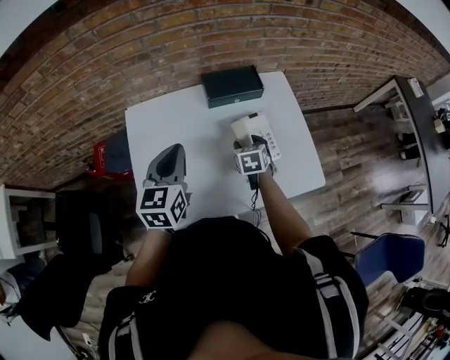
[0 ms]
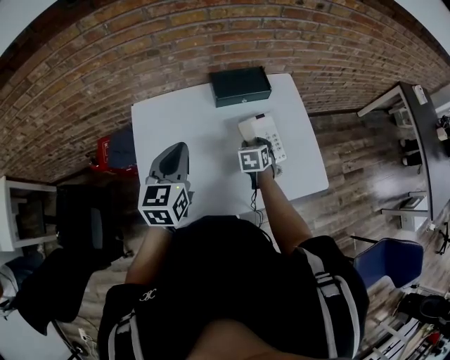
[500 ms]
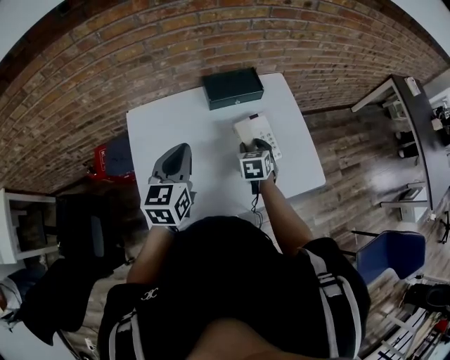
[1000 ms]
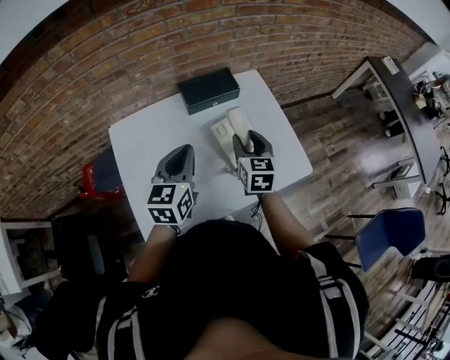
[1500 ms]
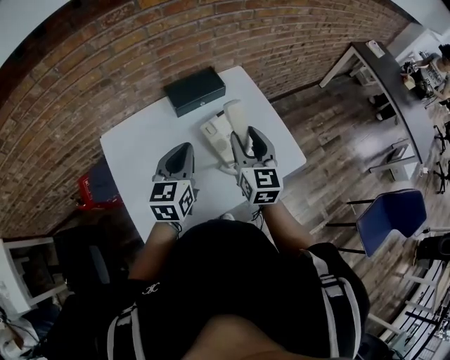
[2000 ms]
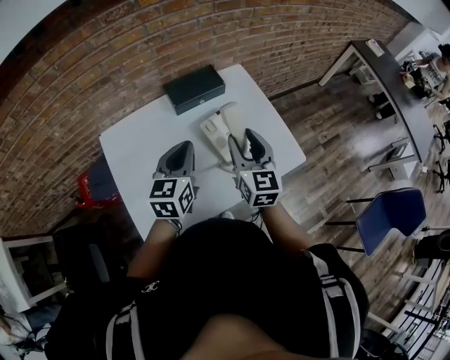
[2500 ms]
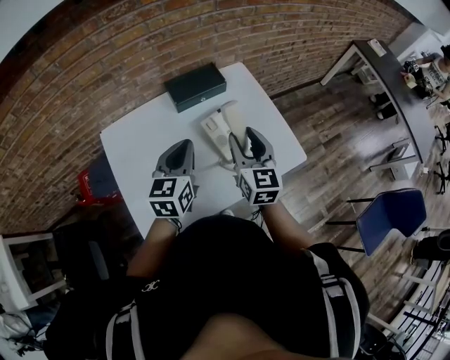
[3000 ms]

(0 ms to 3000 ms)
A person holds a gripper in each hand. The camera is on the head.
0 ms - 1500 ms: The left gripper shifts about 5 cm to the right. The right gripper heads upward, covering about 15 cm, and turns by about 30 degrees.
1500 ms - 3000 ms: The right gripper moves upward, approximately 5 cm.

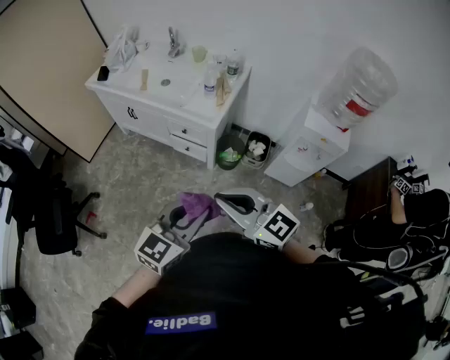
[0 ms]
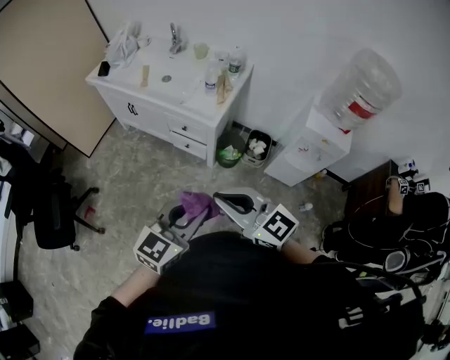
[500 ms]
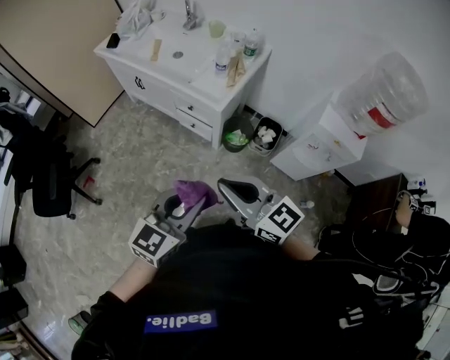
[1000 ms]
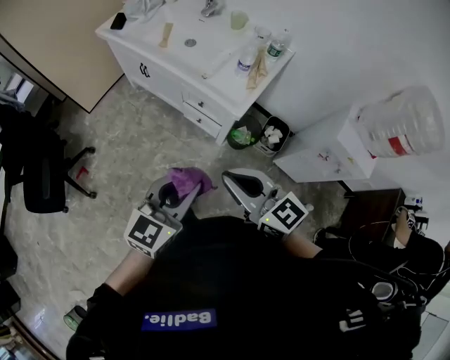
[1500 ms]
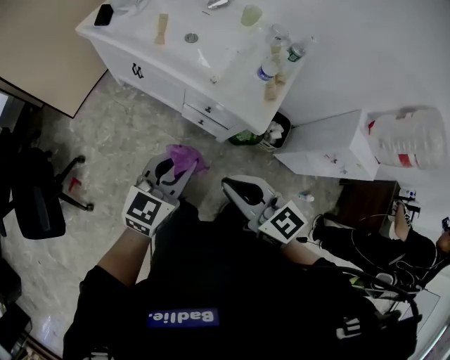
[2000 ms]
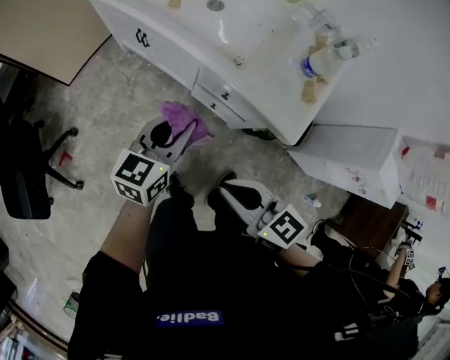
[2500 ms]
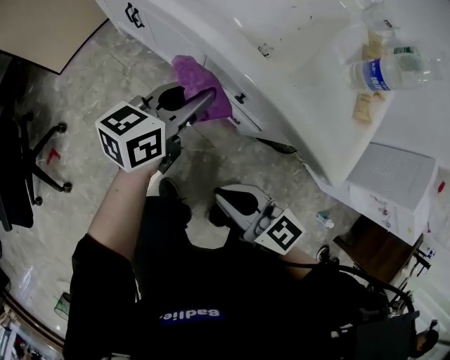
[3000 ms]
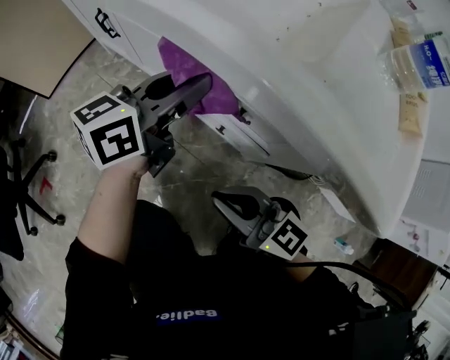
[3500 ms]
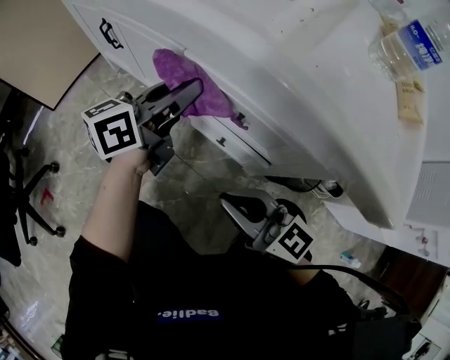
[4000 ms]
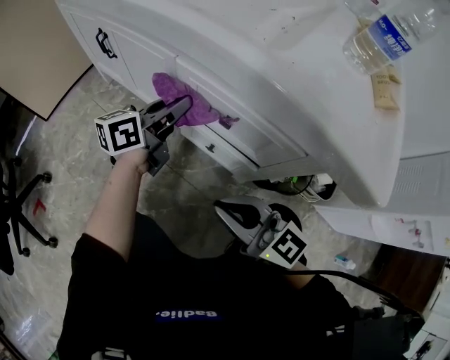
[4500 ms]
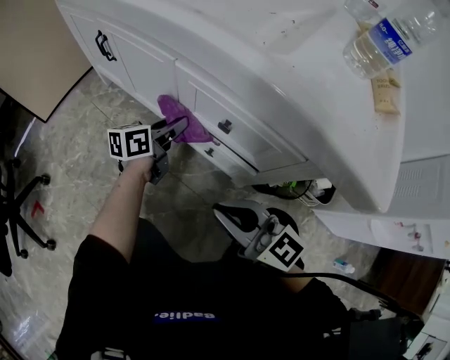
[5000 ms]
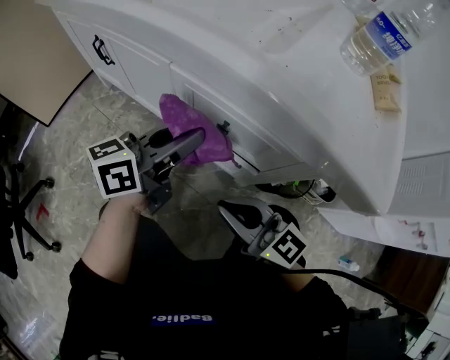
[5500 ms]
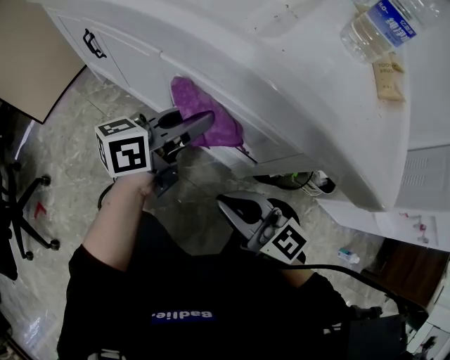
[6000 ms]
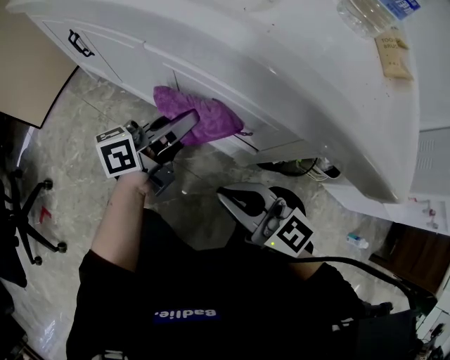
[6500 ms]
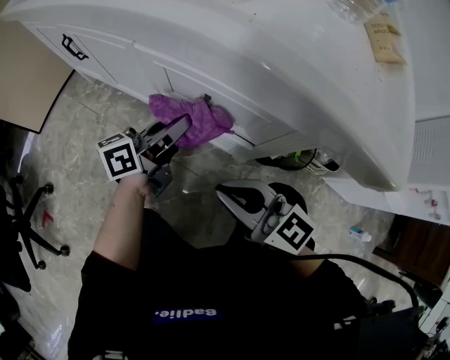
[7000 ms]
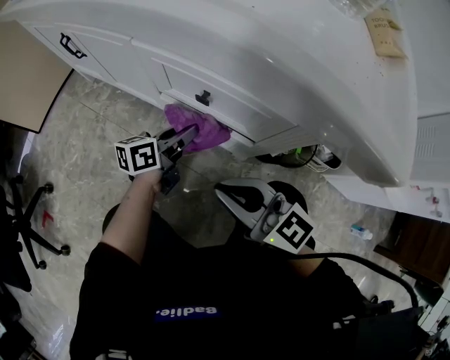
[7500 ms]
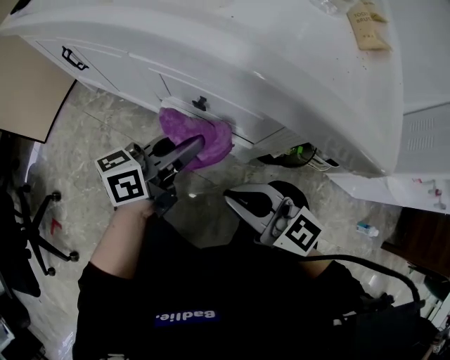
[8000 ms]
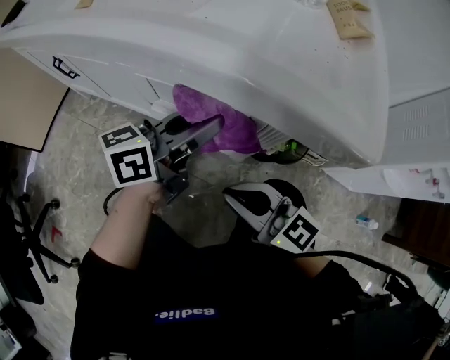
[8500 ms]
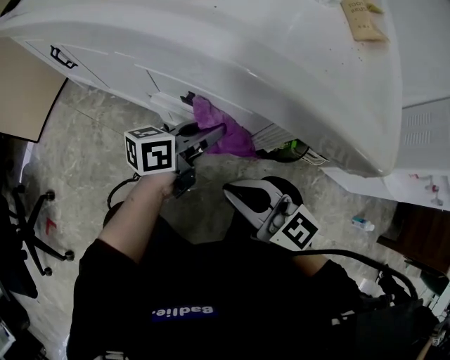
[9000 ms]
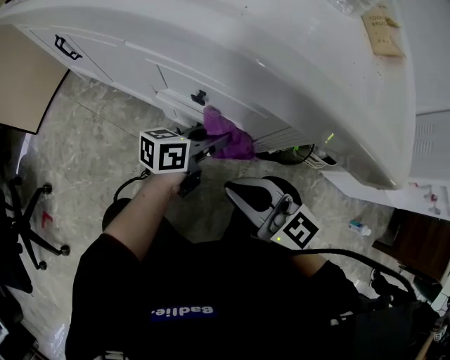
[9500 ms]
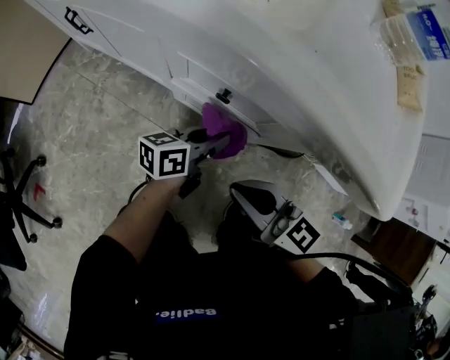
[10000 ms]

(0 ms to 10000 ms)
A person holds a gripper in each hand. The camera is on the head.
0 ms - 2000 ms: Both grippers move forward, to the left and downward, some 35 cm.
2000 ms - 4000 ms: The left gripper heads downward and forward, covering approximately 50 cm, and swivels approximately 30 degrees. The right gripper travels downward by some 50 cm.
4000 ms - 6000 ms: The left gripper heads to the right and backward, covering approximately 10 cm, and reaches about 15 cm downward, then returns.
6000 ms - 8000 ms: The left gripper travels backward by approximately 5 cm, and travels downward and back again, about 20 cm each way.
8000 ms - 10000 ms: The left gripper travels downward by roughly 10 cm.

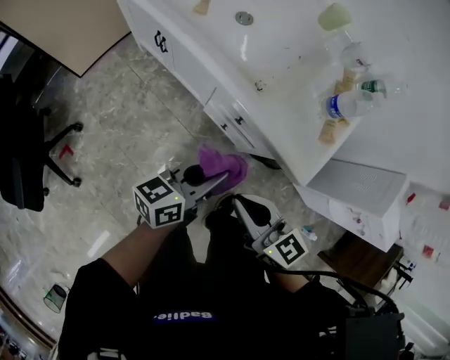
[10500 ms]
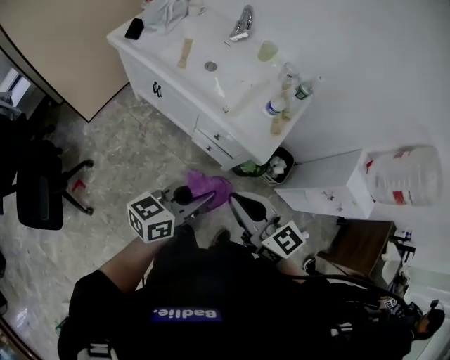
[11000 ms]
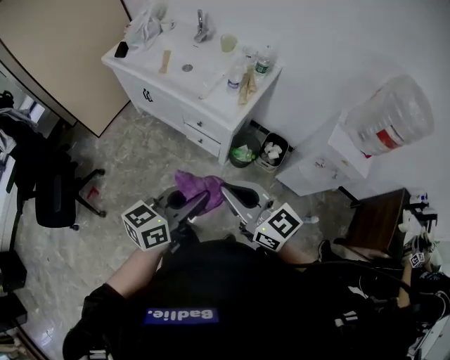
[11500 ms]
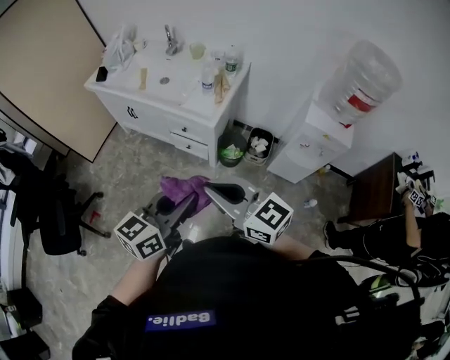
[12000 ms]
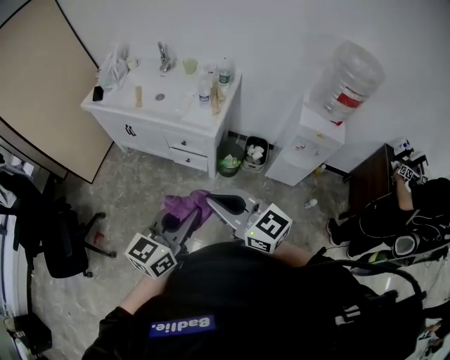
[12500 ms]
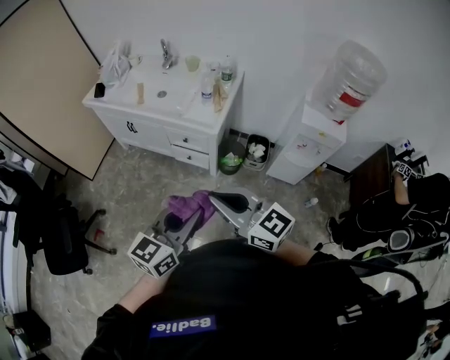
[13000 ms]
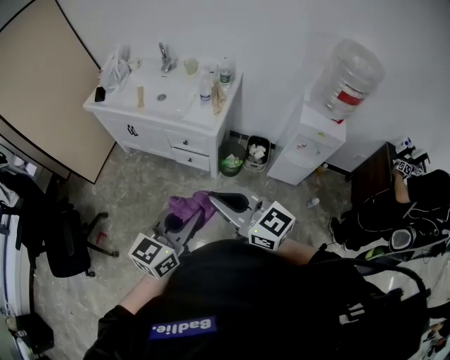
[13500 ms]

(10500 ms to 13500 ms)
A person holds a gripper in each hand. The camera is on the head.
10500 ms - 12000 ms: The right gripper heads upward and backward, covering roughly 50 cm. Meanwhile the left gripper travels backward and upward by approximately 50 cm, and changes its angle by some 20 degrees.
12000 ms - 13500 ms: The left gripper ends up roughly 5 cm from where it was.

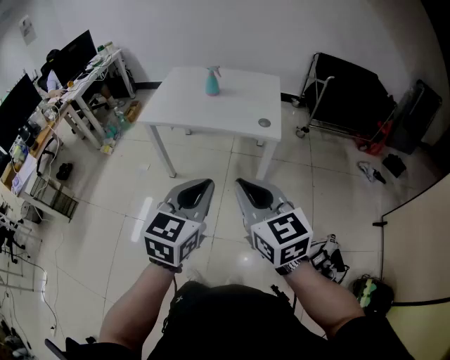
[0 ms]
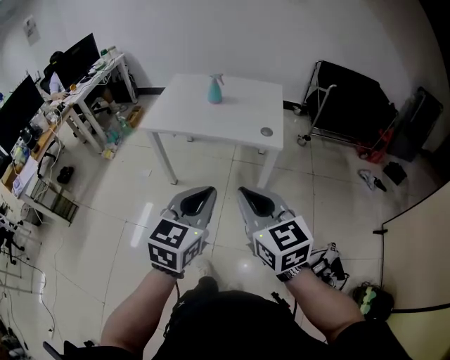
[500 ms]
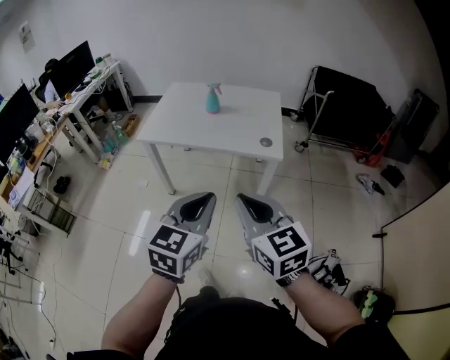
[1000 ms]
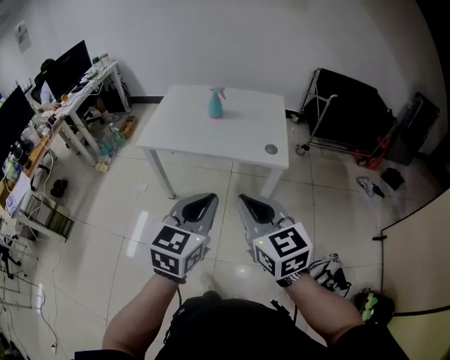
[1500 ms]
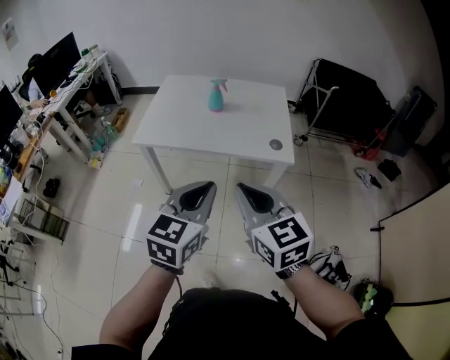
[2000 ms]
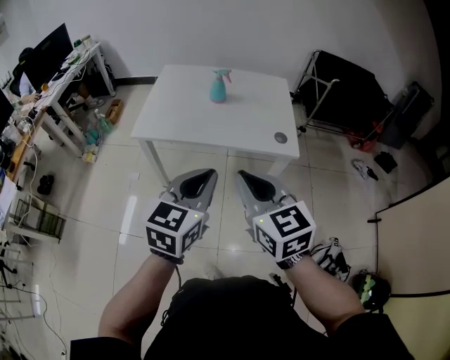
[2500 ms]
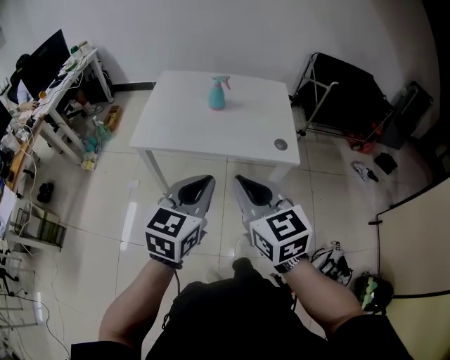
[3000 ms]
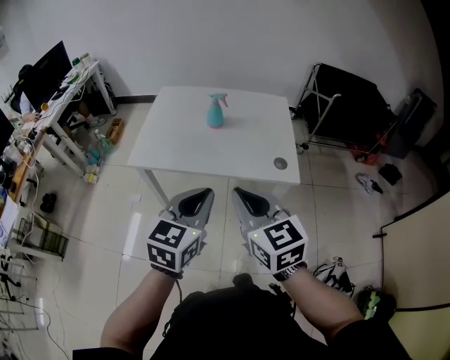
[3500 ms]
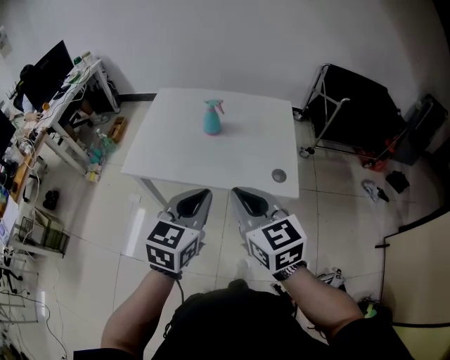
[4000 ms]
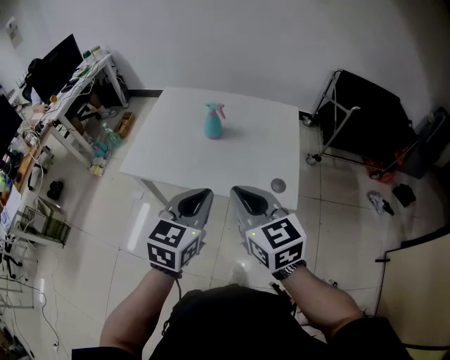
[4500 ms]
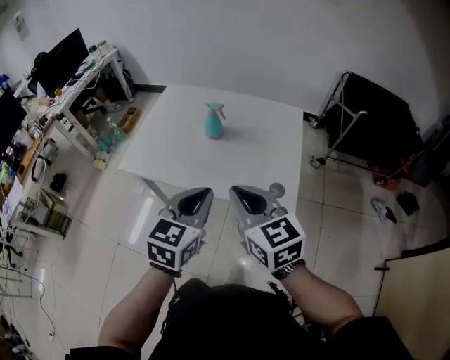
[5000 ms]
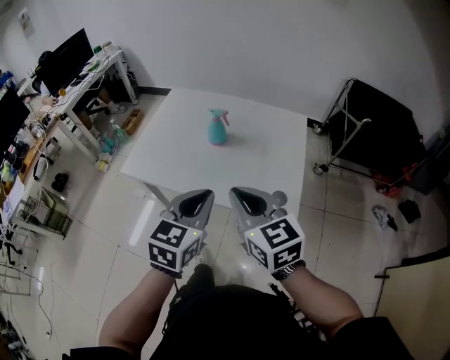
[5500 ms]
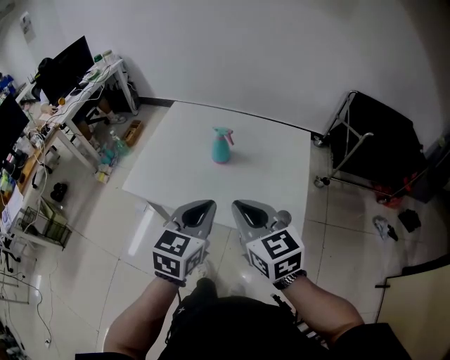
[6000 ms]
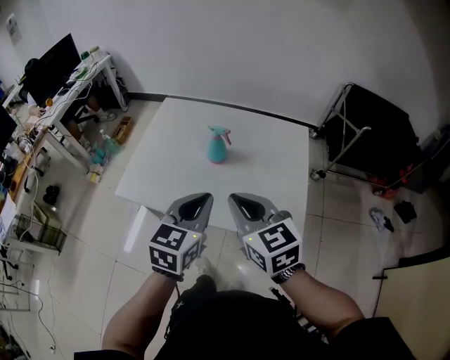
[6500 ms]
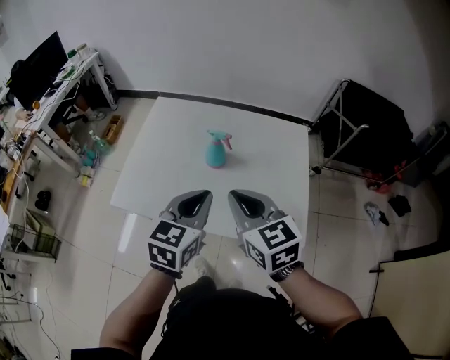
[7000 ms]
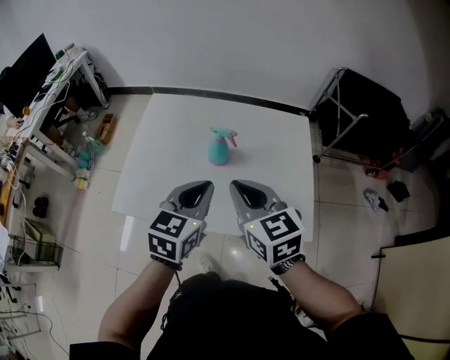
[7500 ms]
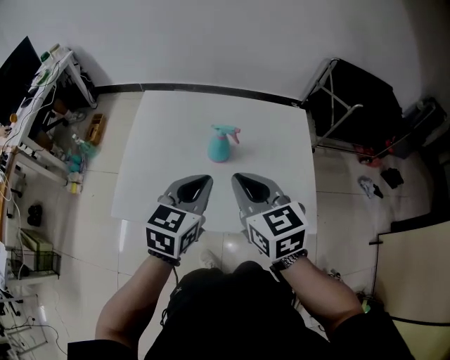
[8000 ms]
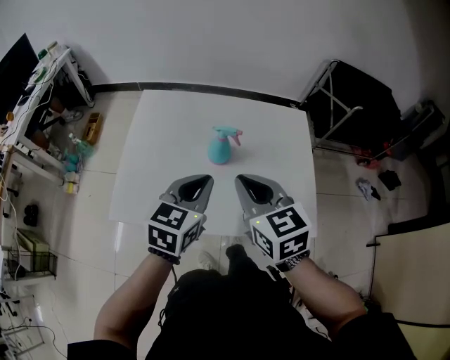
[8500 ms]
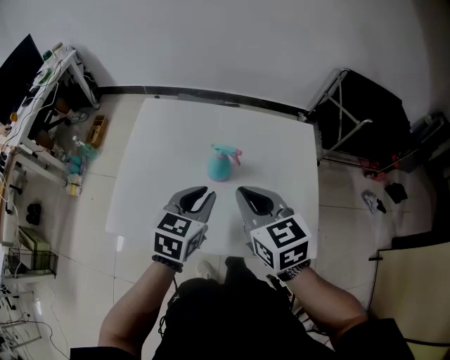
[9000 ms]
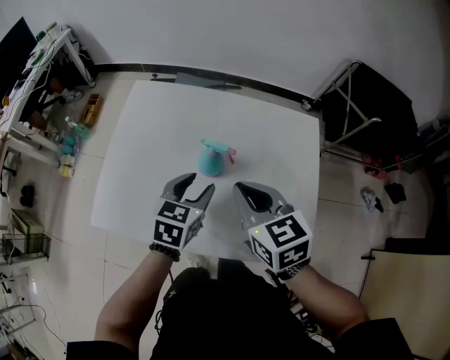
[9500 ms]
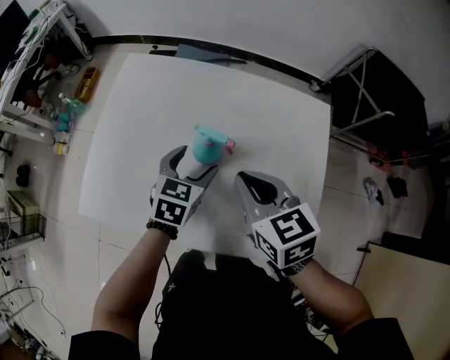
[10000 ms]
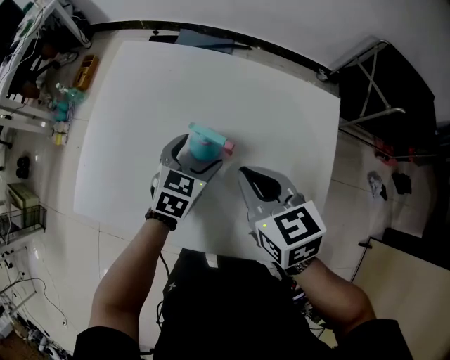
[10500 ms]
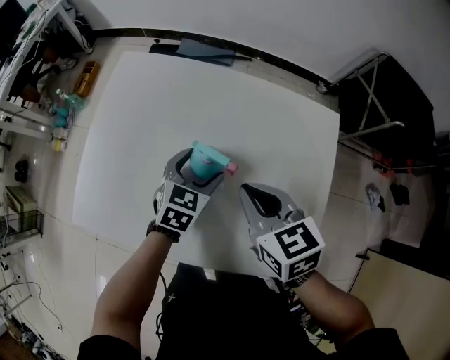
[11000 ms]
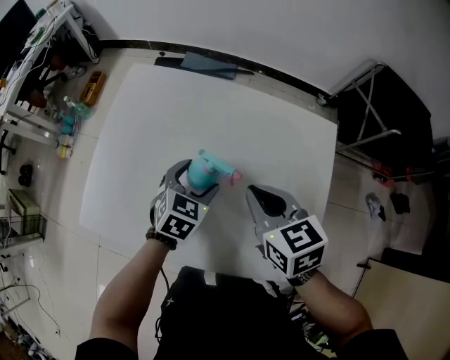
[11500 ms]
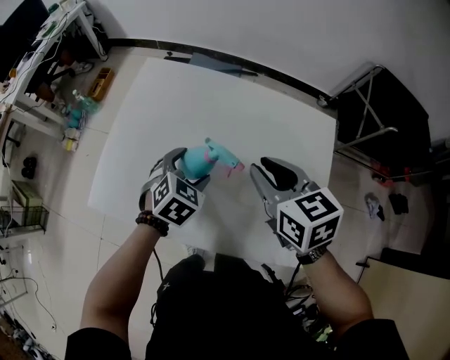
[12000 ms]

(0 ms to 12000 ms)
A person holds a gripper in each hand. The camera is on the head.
0 ms - 2000 ms: The grippers both shift forward and to the left by approximately 15 cm.
2000 ms - 4000 ms: The grippers both shift forward by about 15 cm.
4000 ms - 6000 ms: Both grippers move forward, roughly 10 cm.
6000 ms - 8000 ms: The two grippers go approximately 15 cm forward and to the left.
8000 ms - 10000 ms: The right gripper heads forward, downward and to the right, covering roughly 15 cm. Meanwhile the left gripper travels downward and forward by about 20 cm, and opens its fingers.
10000 ms - 12000 ms: The left gripper swivels about 20 degrees.
